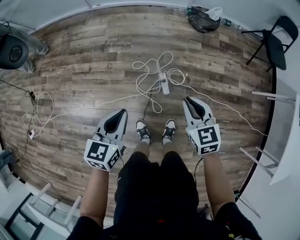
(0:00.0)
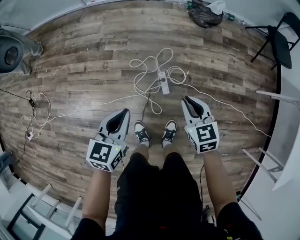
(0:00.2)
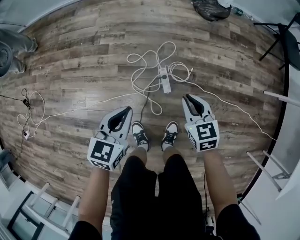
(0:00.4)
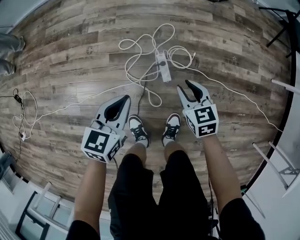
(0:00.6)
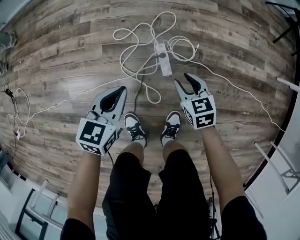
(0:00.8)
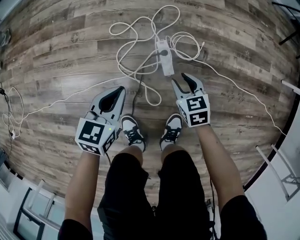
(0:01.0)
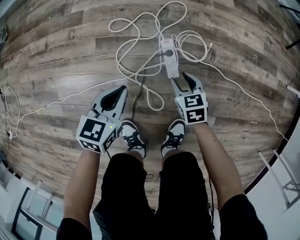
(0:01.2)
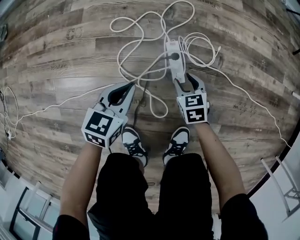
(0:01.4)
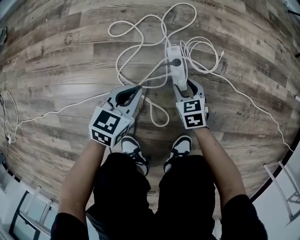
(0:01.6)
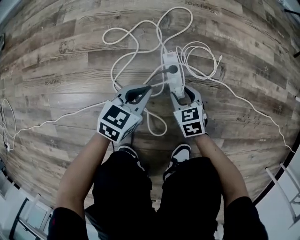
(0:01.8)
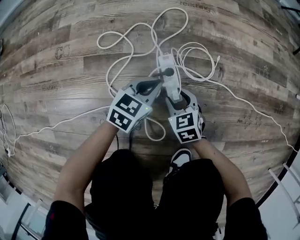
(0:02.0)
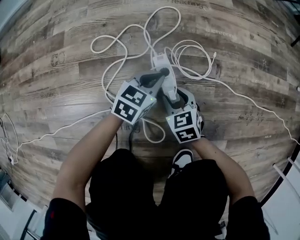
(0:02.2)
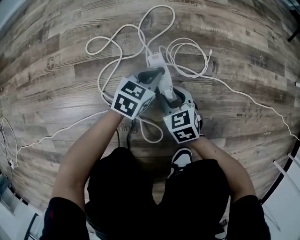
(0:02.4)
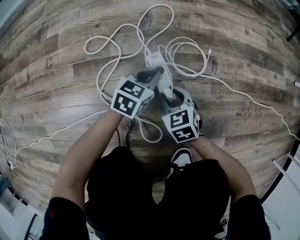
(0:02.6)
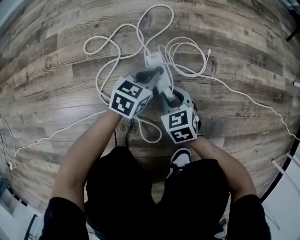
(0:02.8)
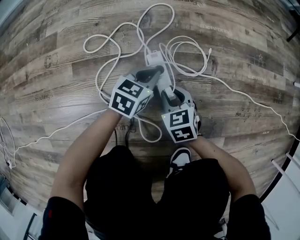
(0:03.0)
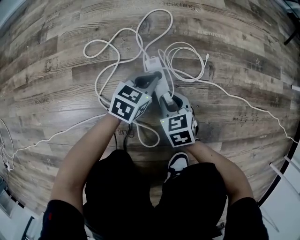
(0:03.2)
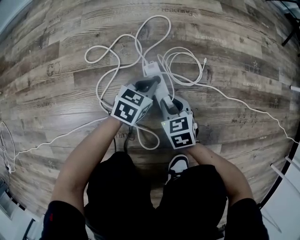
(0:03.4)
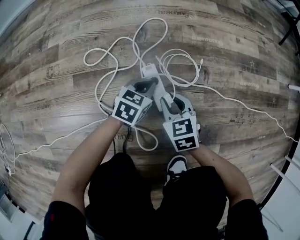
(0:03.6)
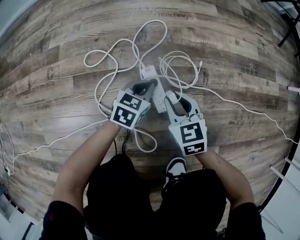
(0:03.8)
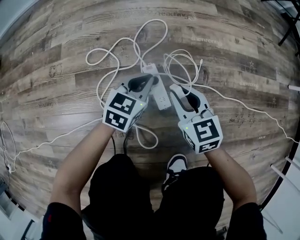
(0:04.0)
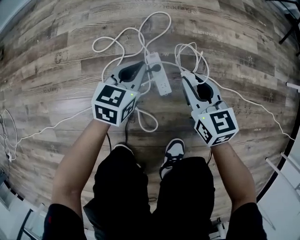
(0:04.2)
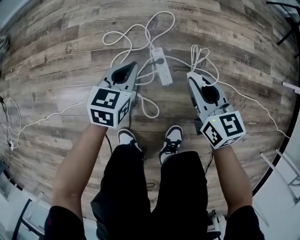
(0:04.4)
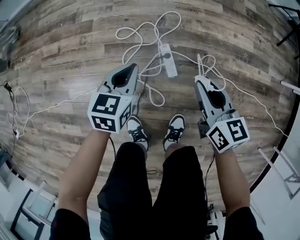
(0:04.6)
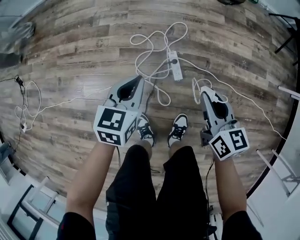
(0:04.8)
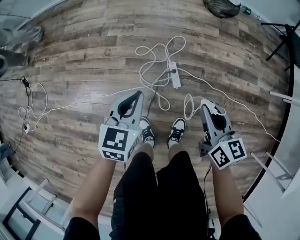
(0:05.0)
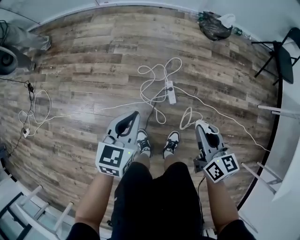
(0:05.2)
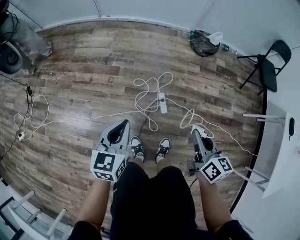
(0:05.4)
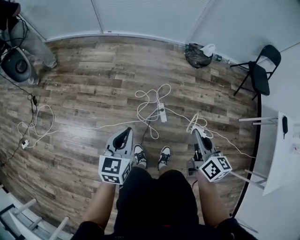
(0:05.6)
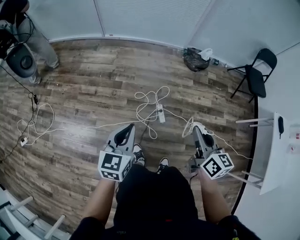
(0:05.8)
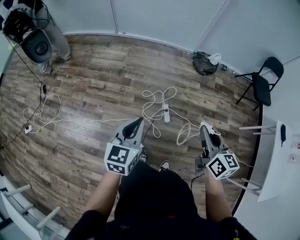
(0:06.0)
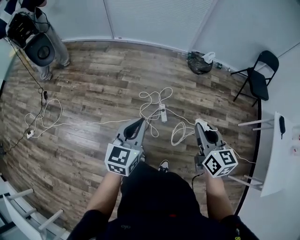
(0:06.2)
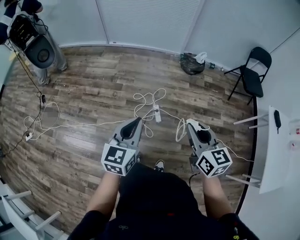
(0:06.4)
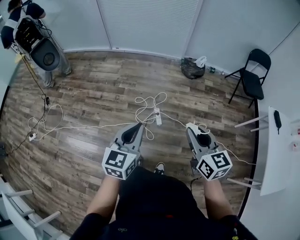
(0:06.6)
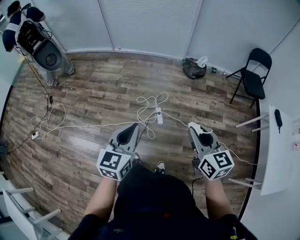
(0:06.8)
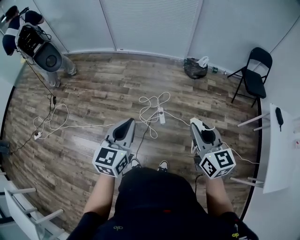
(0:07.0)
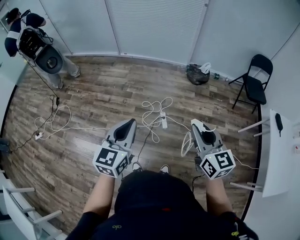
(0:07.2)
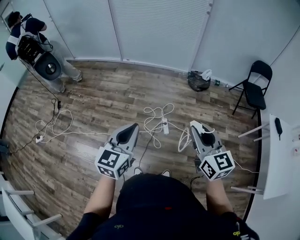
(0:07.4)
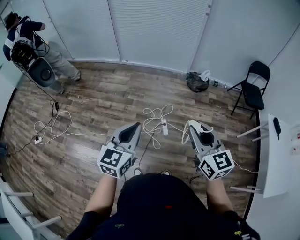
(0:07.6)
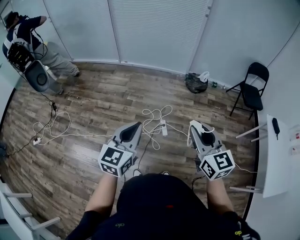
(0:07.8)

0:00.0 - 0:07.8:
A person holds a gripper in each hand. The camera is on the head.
0:00.0 - 0:01.6: The two grippers go some 70 cm downward. The right gripper rotates about 20 degrees, and opens up.
0:01.6 - 0:03.2: The left gripper is displaced downward, to the right and forward by approximately 20 cm.
0:03.2 - 0:04.6: Both grippers travel together upward, roughly 35 cm. The left gripper changes its angle by about 20 degrees. The right gripper swivels some 30 degrees.
0:04.6 - 0:06.2: The grippers both shift upward by roughly 60 cm. The left gripper turns by about 20 degrees.
0:06.2 - 0:07.8: The right gripper shifts about 20 cm upward and backward, and rotates some 20 degrees, while the left gripper moves backward and upward, approximately 20 cm.

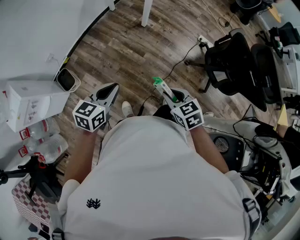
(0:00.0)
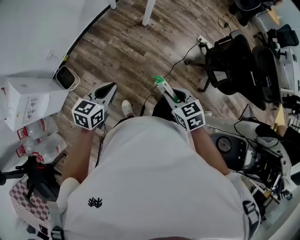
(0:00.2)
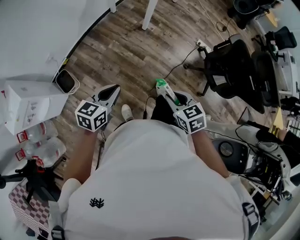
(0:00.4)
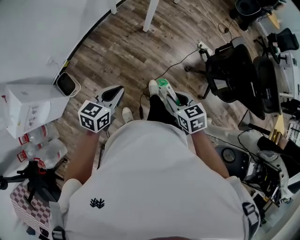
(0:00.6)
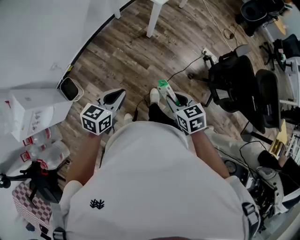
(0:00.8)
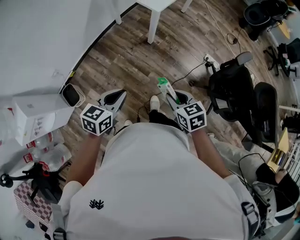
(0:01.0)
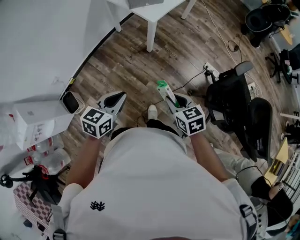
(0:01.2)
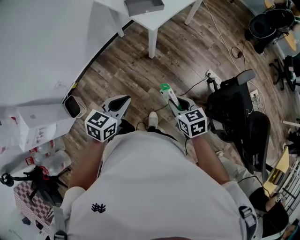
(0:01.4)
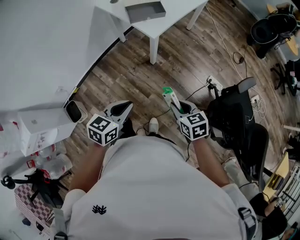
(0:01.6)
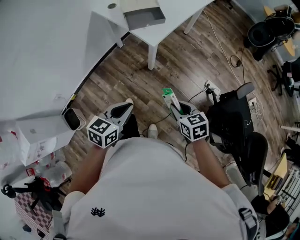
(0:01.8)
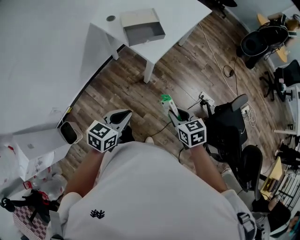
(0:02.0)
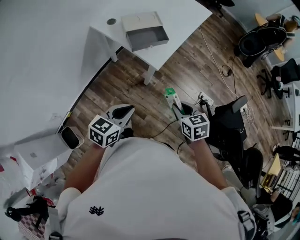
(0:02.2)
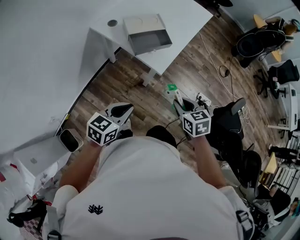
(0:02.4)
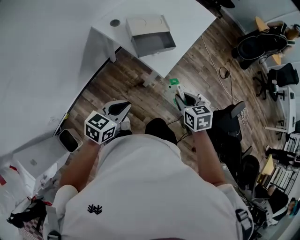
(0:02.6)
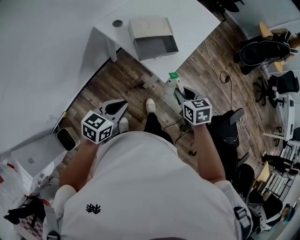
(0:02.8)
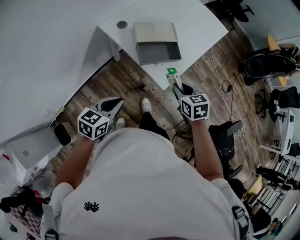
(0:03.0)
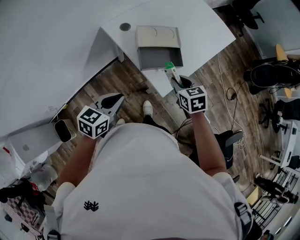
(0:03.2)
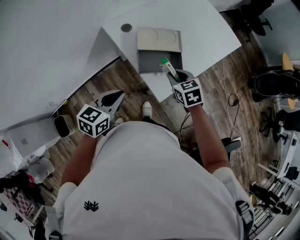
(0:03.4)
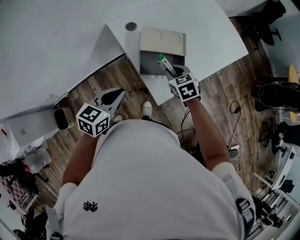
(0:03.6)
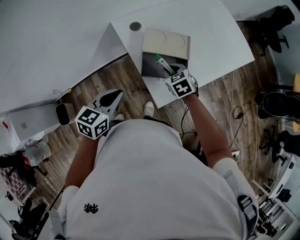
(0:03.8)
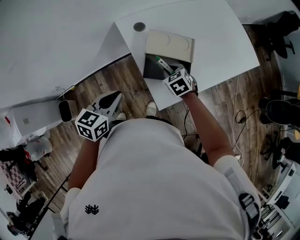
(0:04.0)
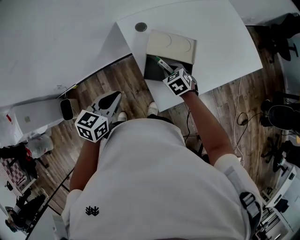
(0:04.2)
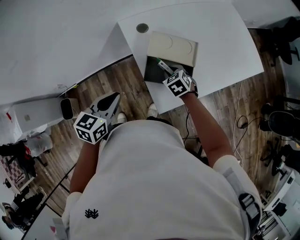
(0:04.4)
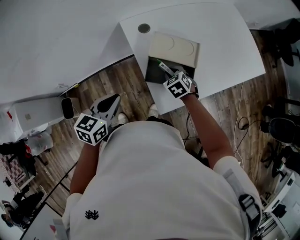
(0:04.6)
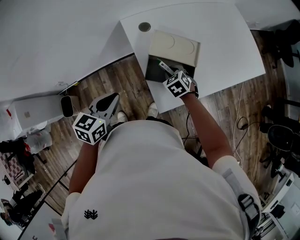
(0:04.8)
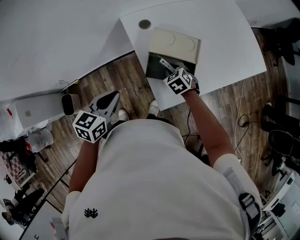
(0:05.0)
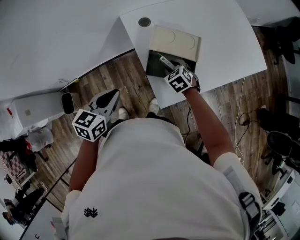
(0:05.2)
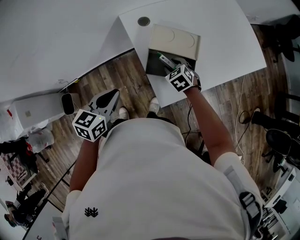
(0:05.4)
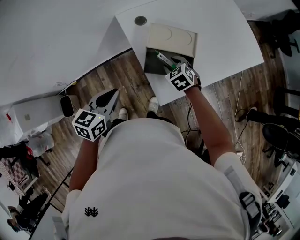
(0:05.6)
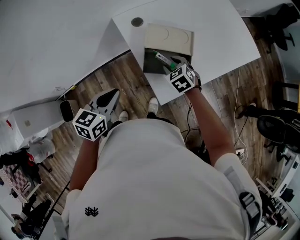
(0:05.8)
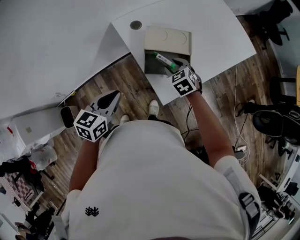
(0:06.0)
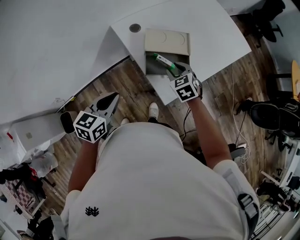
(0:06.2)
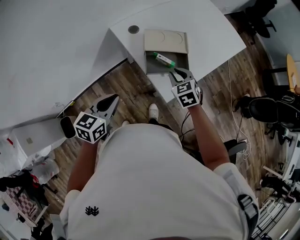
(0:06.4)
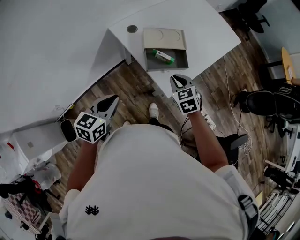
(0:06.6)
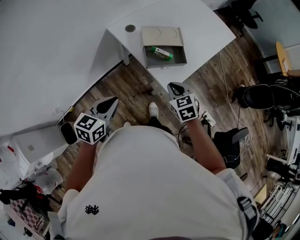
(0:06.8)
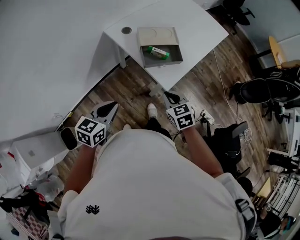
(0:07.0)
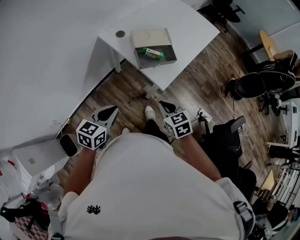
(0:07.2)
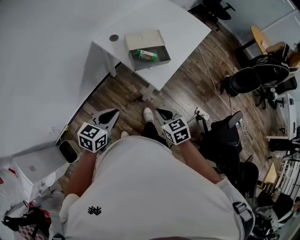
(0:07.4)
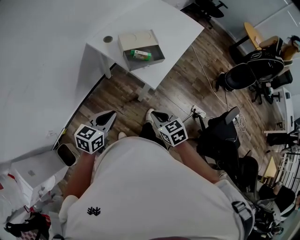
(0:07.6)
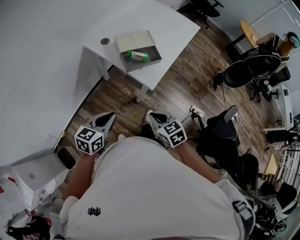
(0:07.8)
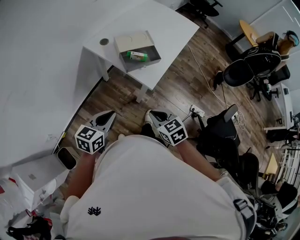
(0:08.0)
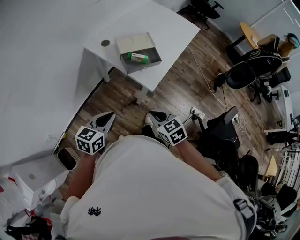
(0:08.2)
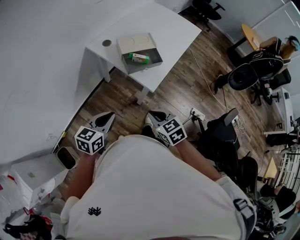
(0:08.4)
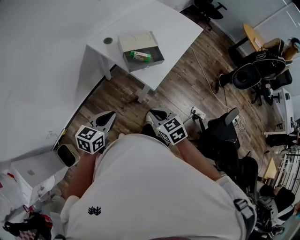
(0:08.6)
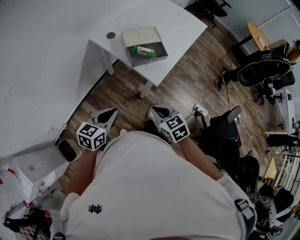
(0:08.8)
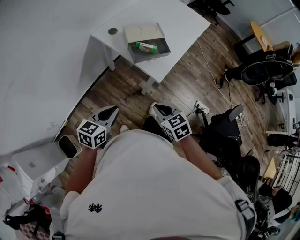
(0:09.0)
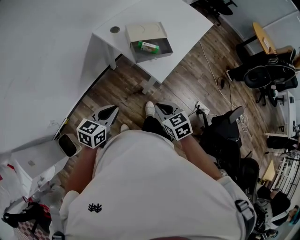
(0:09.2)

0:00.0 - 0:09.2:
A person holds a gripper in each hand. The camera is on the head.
0:00.0 - 0:01.6: Both grippers travel together forward, about 25 cm.
0:01.6 - 0:03.0: The left gripper heads forward and to the left, covering roughly 30 cm. The right gripper shifts roughly 35 cm forward.
0:03.0 - 0:04.6: The left gripper moves roughly 10 cm, and turns by roughly 30 degrees. The right gripper shifts by about 25 cm, and rotates about 40 degrees.
0:04.6 - 0:06.2: The right gripper is displaced upward by roughly 10 cm.
0:06.2 - 0:07.6: The left gripper heads backward, covering roughly 10 cm, and rotates about 20 degrees. The right gripper moves backward, approximately 30 cm, rotates approximately 30 degrees, and closes its fingers.
0:07.6 - 0:09.2: The grippers make only small movements.

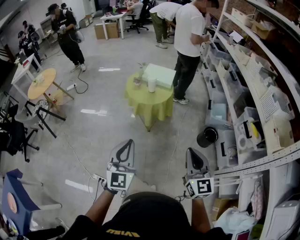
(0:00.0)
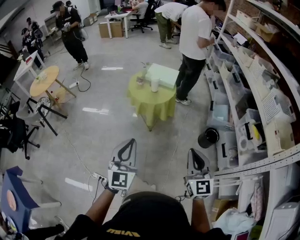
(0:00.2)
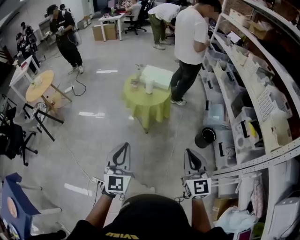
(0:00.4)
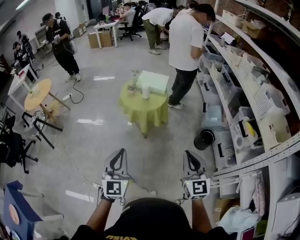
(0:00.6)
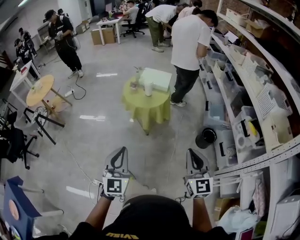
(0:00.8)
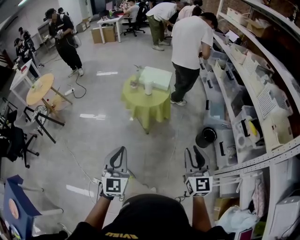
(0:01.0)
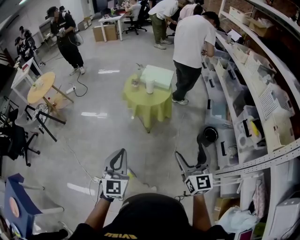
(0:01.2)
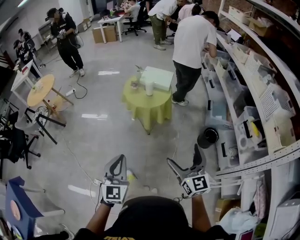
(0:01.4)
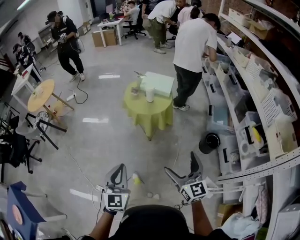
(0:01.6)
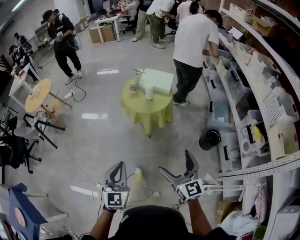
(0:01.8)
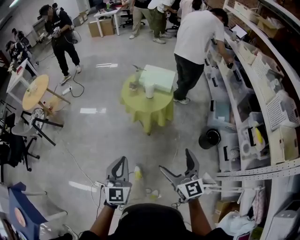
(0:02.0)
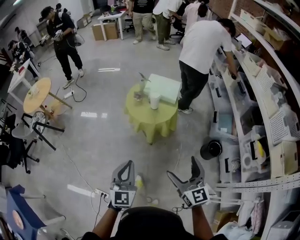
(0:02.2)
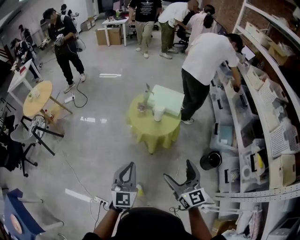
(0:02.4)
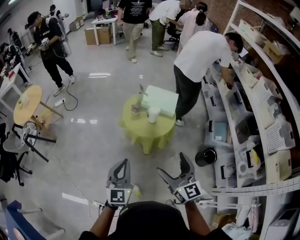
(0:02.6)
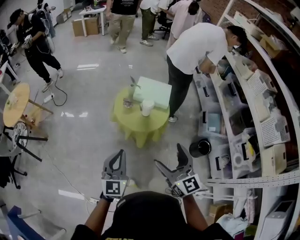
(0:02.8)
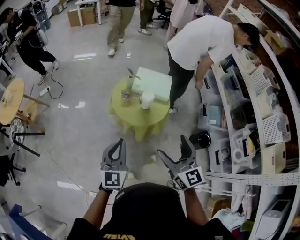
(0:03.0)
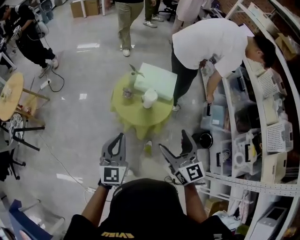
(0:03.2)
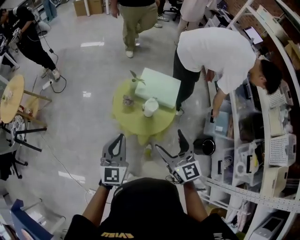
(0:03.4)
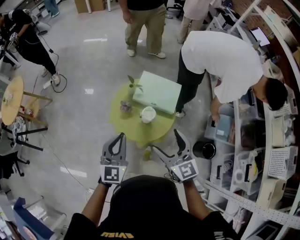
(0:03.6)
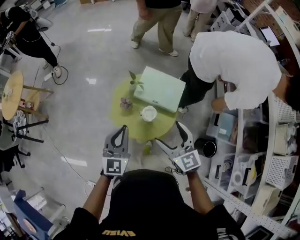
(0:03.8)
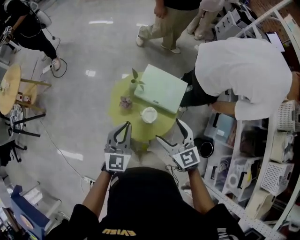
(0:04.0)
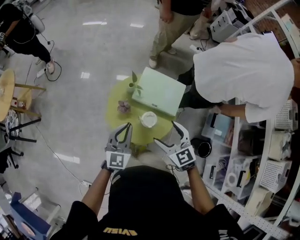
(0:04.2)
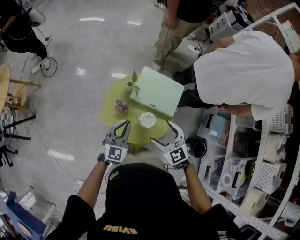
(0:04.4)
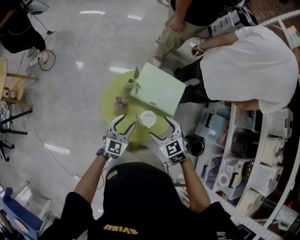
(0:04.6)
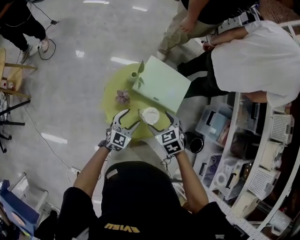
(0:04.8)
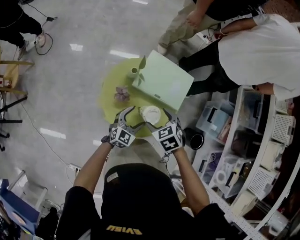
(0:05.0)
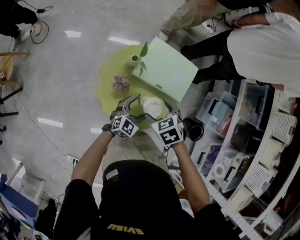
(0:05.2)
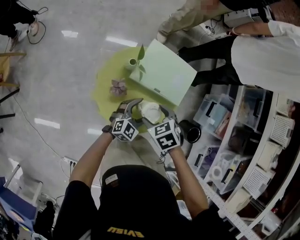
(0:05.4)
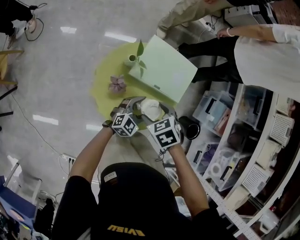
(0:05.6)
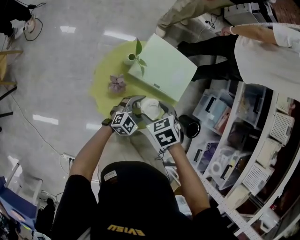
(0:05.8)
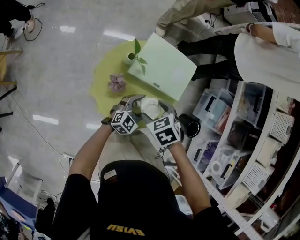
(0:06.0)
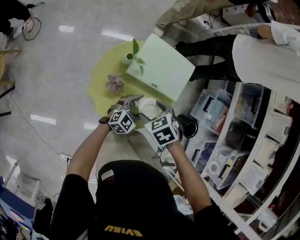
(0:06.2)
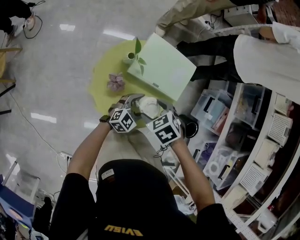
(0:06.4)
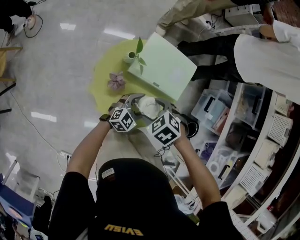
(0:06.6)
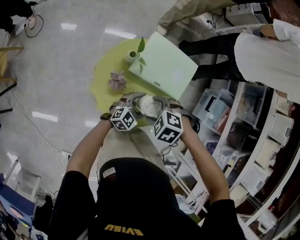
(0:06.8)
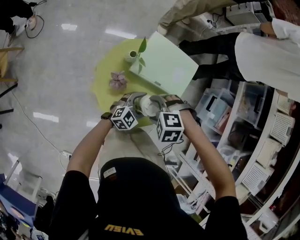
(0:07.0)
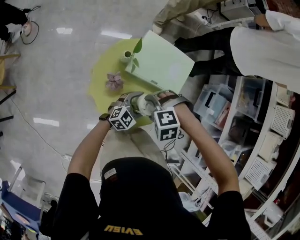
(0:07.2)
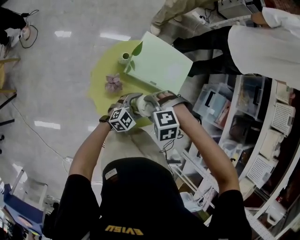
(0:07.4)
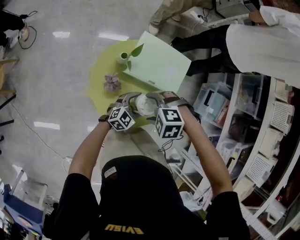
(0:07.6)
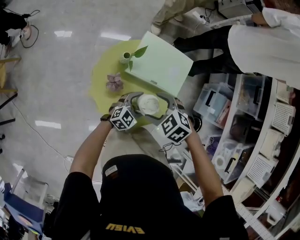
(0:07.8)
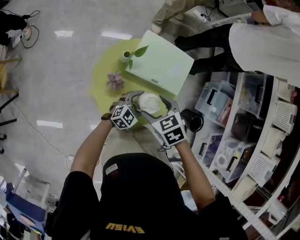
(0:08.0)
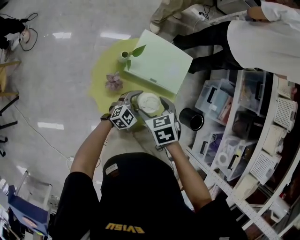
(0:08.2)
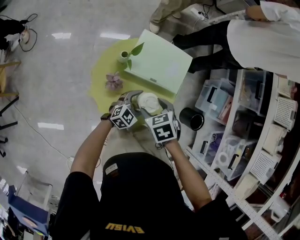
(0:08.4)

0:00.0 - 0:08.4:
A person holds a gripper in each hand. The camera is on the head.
0:00.0 - 0:01.4: The right gripper opens its fingers.
0:01.4 - 0:02.8: The two grippers go about 35 cm forward.
0:02.8 - 0:04.2: The left gripper goes roughly 35 cm forward, while the right gripper travels forward and downward by some 40 cm, and tilts its fingers some 30 degrees downward.
0:04.2 - 0:05.6: The left gripper is displaced downward and to the right by approximately 30 cm, changes its angle by approximately 40 degrees, and opens its fingers. Meanwhile the right gripper goes approximately 15 cm downward, and tilts its fingers approximately 40 degrees downward.
0:05.6 - 0:07.0: The right gripper twists some 60 degrees counterclockwise, seen from behind.
0:07.0 - 0:08.4: The right gripper twists about 70 degrees clockwise, seen from behind.
